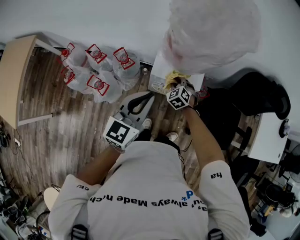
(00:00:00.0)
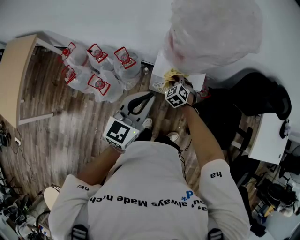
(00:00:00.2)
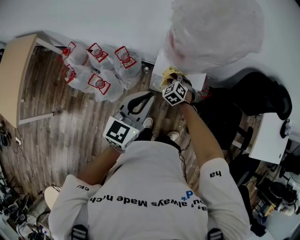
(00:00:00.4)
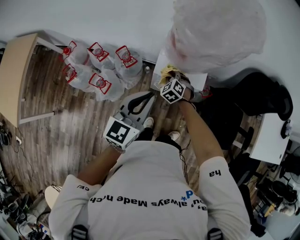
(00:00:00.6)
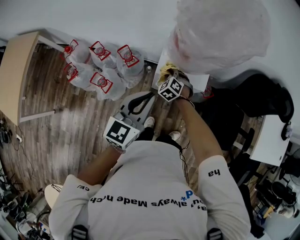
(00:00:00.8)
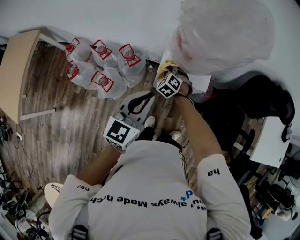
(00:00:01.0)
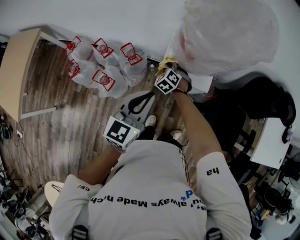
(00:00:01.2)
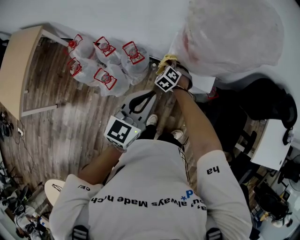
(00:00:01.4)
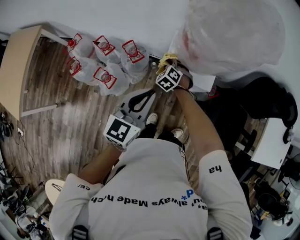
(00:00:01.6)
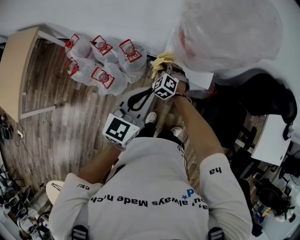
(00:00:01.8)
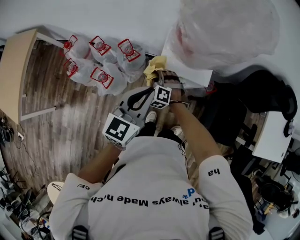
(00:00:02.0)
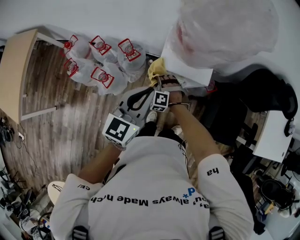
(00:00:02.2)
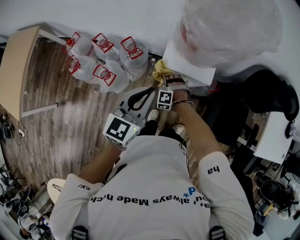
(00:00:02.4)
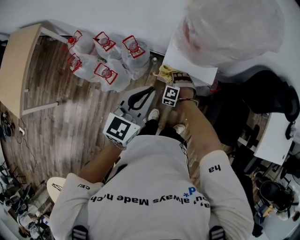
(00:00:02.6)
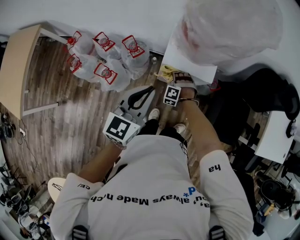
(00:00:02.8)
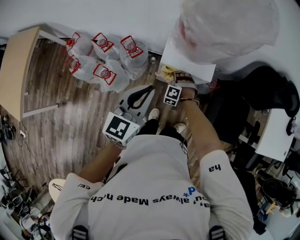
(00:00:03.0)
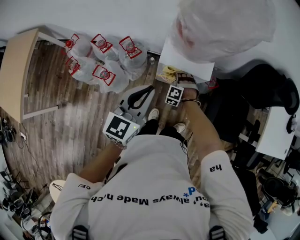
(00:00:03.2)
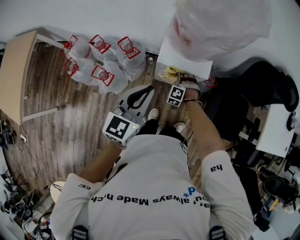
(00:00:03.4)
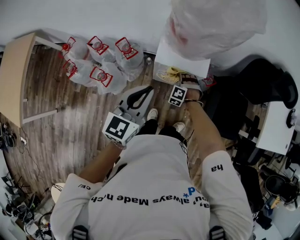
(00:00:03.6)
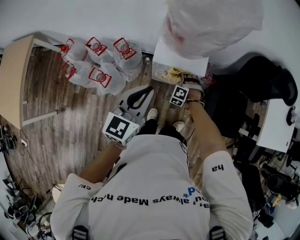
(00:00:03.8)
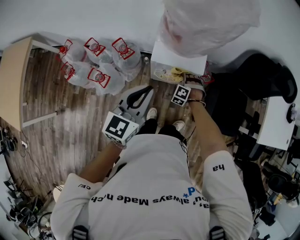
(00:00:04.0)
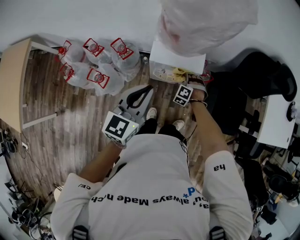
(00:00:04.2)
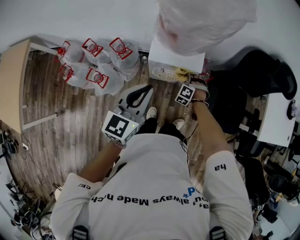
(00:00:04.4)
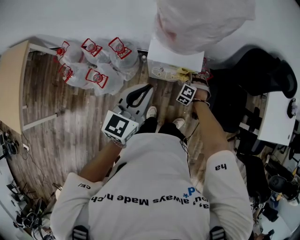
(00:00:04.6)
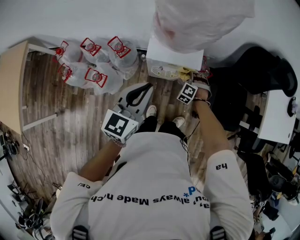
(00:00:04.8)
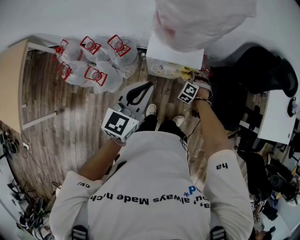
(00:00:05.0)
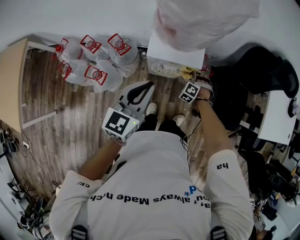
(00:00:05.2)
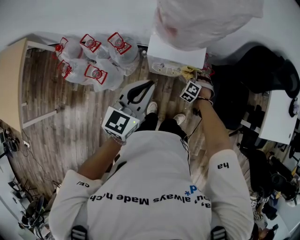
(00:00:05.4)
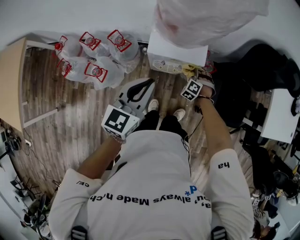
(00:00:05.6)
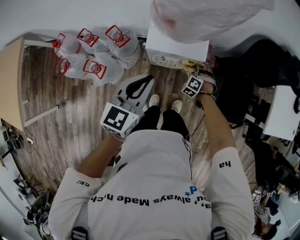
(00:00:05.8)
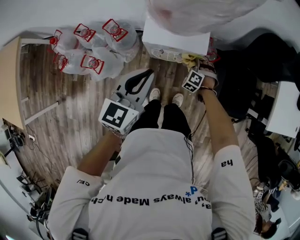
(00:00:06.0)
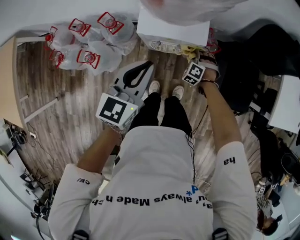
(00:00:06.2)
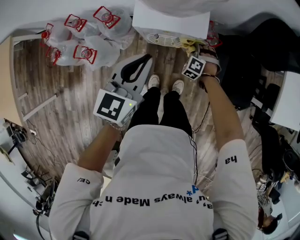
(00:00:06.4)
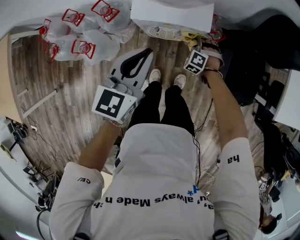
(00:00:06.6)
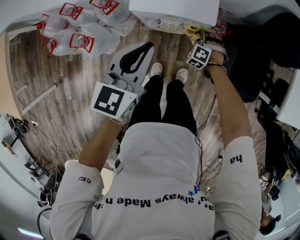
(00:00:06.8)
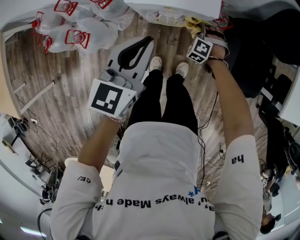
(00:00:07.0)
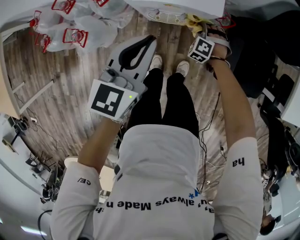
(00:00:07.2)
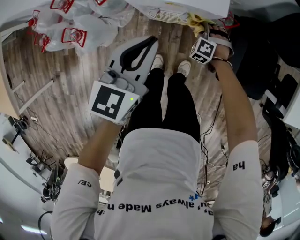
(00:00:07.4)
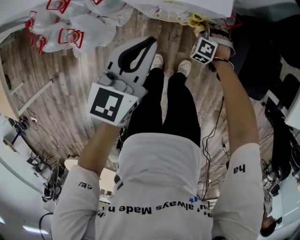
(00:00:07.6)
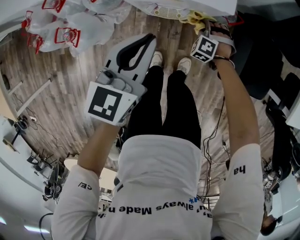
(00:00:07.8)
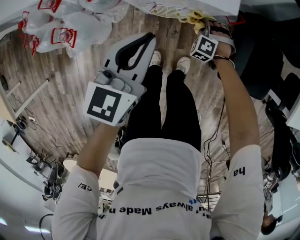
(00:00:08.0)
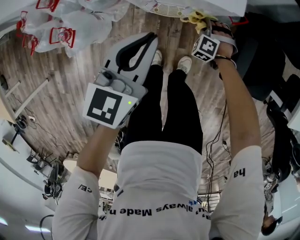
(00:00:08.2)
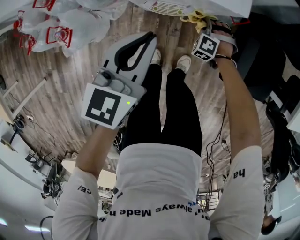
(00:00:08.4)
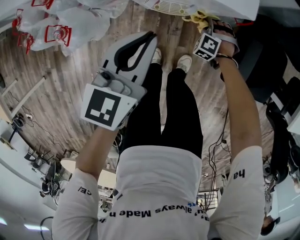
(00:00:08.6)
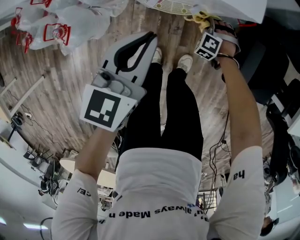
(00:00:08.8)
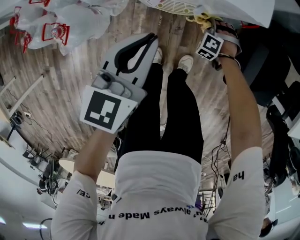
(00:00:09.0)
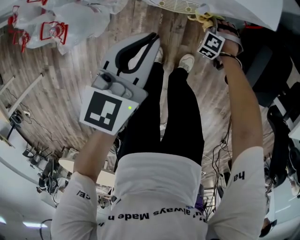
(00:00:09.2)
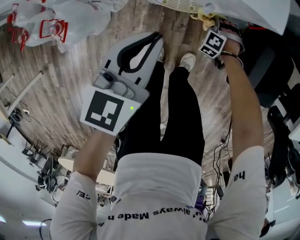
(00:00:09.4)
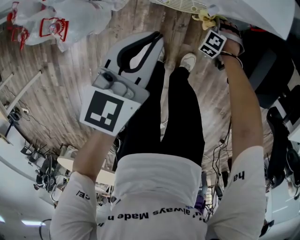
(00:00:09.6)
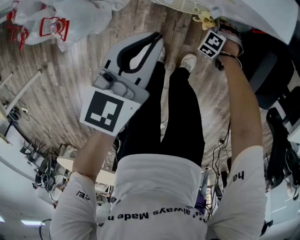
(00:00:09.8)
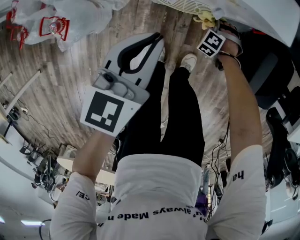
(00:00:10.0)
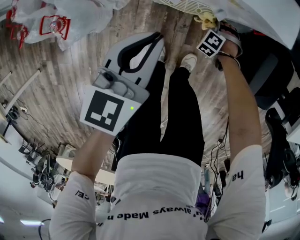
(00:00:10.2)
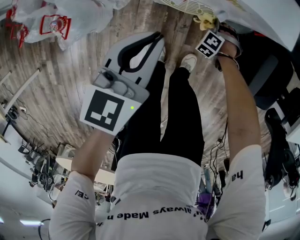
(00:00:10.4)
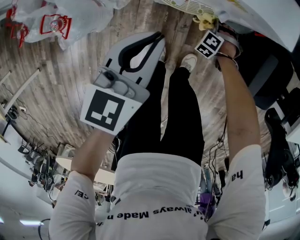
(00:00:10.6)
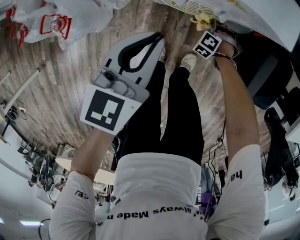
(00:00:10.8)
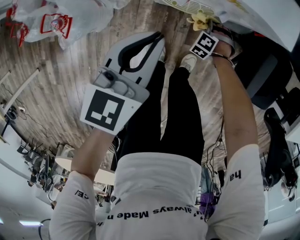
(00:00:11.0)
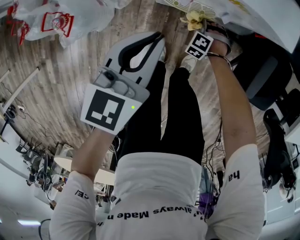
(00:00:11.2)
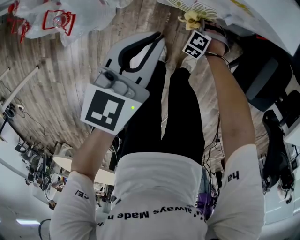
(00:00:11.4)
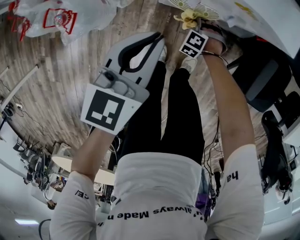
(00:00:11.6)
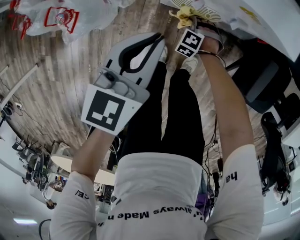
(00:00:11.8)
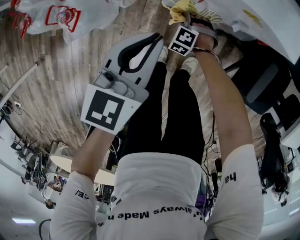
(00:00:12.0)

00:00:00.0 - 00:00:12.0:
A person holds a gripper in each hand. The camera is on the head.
00:00:00.0 - 00:00:01.6: The right gripper is displaced to the left by about 10 cm.
00:00:01.6 - 00:00:03.0: The right gripper heads backward, to the right and downward, covering some 15 cm, and rotates about 30 degrees.
00:00:03.0 - 00:00:04.4: The right gripper travels to the right by roughly 15 cm.
00:00:04.4 - 00:00:06.0: Both grippers move downward, some 5 cm.
00:00:06.0 - 00:00:07.6: Both grippers travel together downward, roughly 10 cm.
00:00:07.6 - 00:00:09.0: The two grippers go roughly 10 cm downward.
00:00:09.0 - 00:00:10.4: The right gripper travels downward by roughly 5 cm.
00:00:10.4 - 00:00:12.0: The right gripper is displaced to the left and backward by approximately 15 cm.

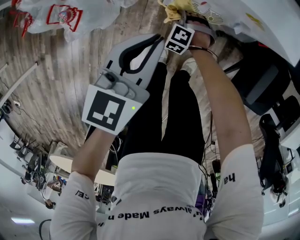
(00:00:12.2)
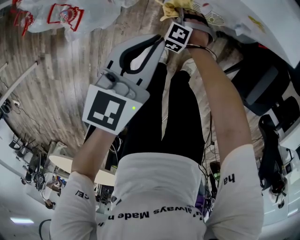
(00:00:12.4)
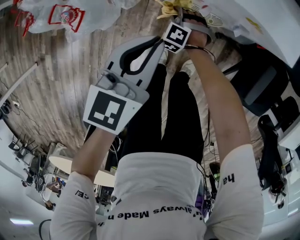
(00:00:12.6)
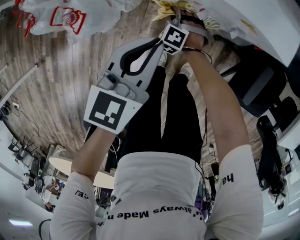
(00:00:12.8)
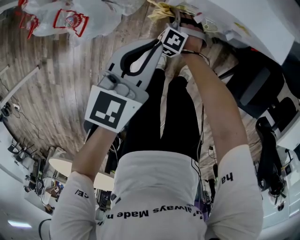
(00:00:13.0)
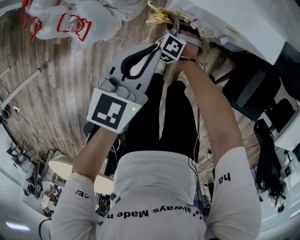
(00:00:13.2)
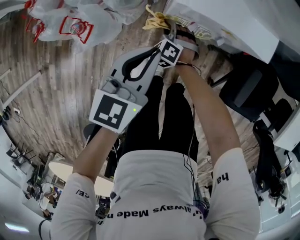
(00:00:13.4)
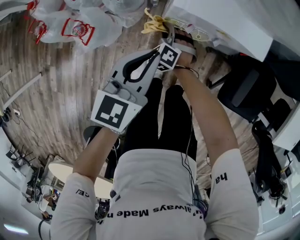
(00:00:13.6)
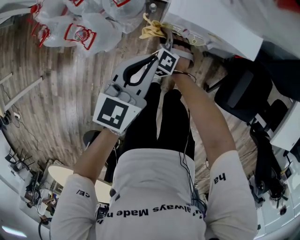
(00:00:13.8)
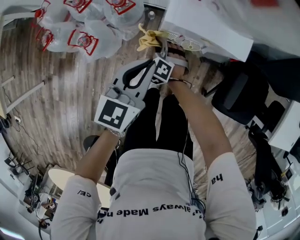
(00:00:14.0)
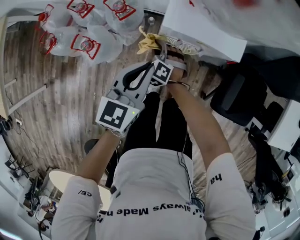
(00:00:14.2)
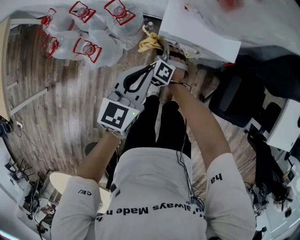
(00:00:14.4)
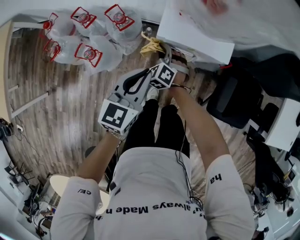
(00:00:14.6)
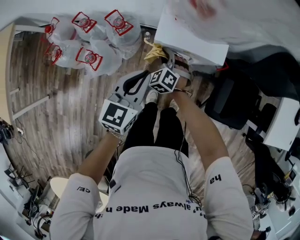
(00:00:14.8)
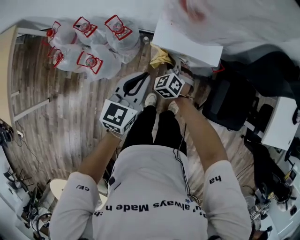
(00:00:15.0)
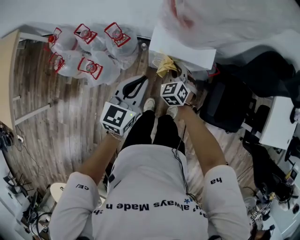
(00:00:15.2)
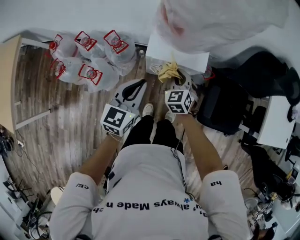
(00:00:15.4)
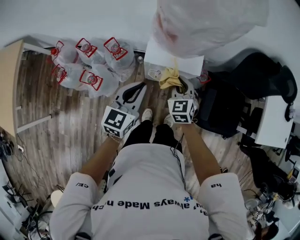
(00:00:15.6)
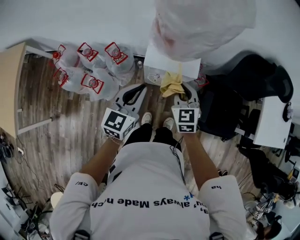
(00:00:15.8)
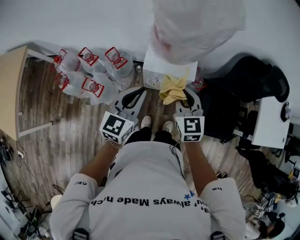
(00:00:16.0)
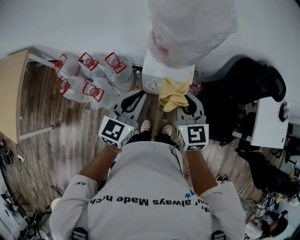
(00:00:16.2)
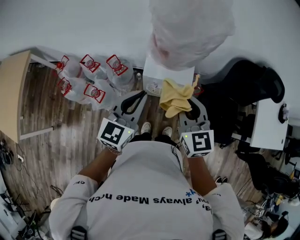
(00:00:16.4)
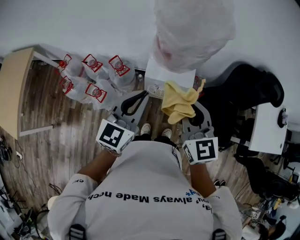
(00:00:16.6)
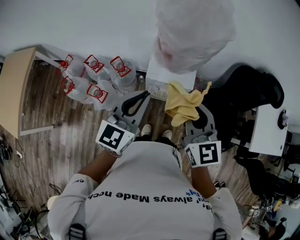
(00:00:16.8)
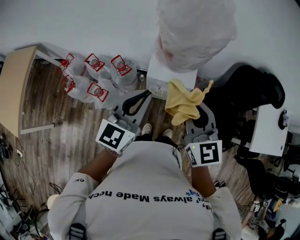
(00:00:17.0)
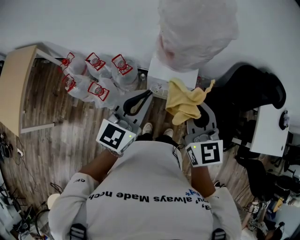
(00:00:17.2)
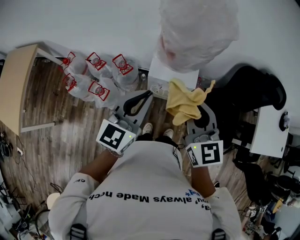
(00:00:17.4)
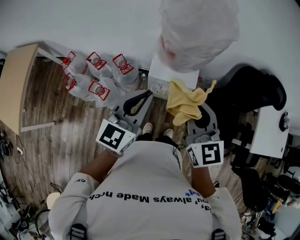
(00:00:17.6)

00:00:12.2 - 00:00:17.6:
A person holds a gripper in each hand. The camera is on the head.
00:00:12.2 - 00:00:13.6: The right gripper travels upward and to the left by some 15 cm, and changes its angle by some 20 degrees. The left gripper goes approximately 5 cm upward.
00:00:13.6 - 00:00:15.0: The left gripper is displaced upward by about 10 cm; the right gripper heads upward and to the right, covering roughly 20 cm.
00:00:15.0 - 00:00:16.2: The left gripper goes about 15 cm upward, while the right gripper moves upward, approximately 35 cm, and changes its angle by some 40 degrees.
00:00:16.2 - 00:00:17.6: Both grippers move upward, some 10 cm.

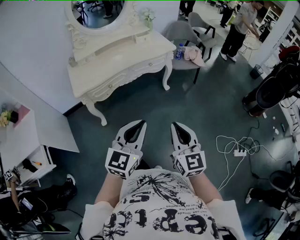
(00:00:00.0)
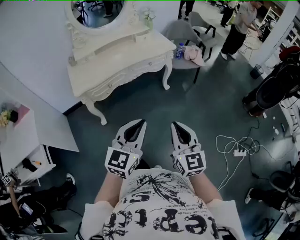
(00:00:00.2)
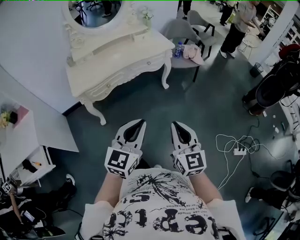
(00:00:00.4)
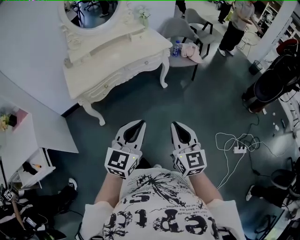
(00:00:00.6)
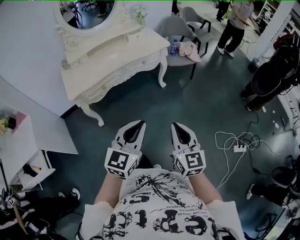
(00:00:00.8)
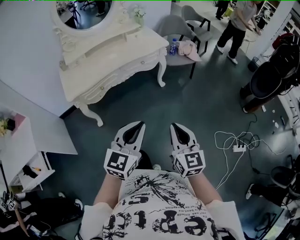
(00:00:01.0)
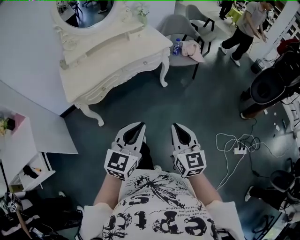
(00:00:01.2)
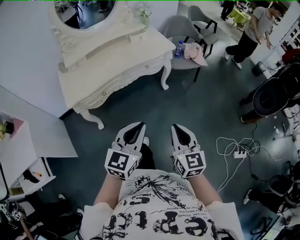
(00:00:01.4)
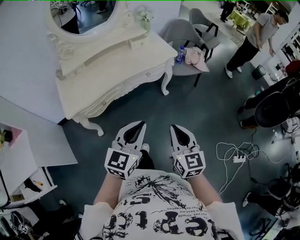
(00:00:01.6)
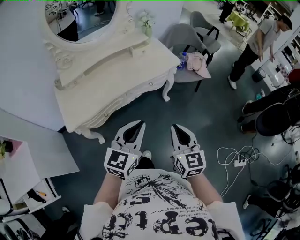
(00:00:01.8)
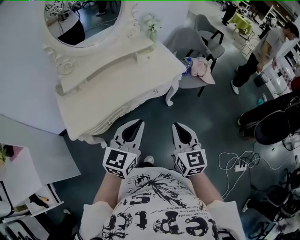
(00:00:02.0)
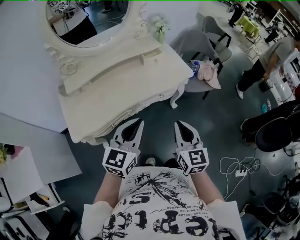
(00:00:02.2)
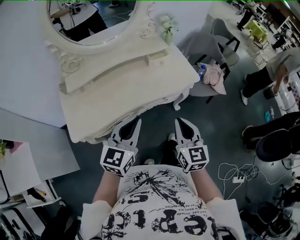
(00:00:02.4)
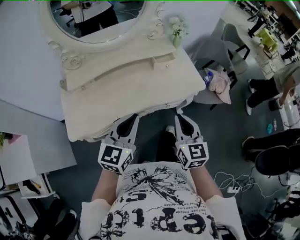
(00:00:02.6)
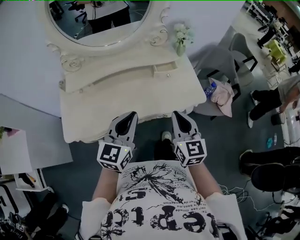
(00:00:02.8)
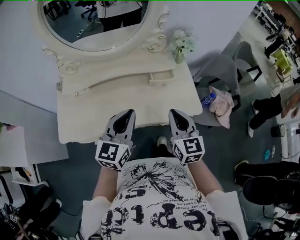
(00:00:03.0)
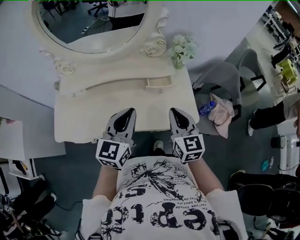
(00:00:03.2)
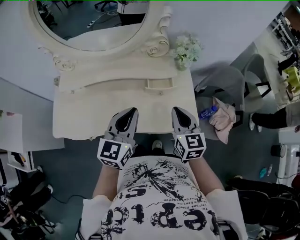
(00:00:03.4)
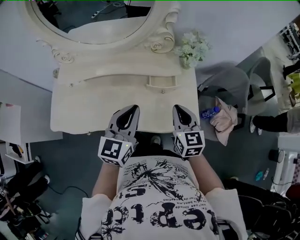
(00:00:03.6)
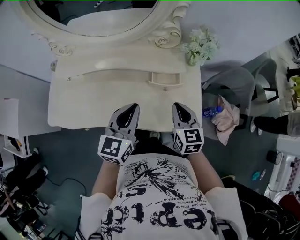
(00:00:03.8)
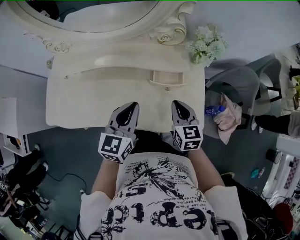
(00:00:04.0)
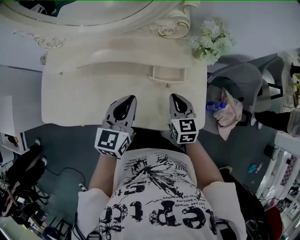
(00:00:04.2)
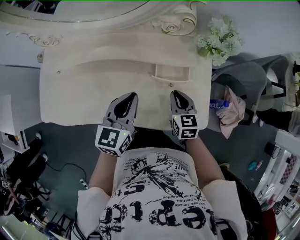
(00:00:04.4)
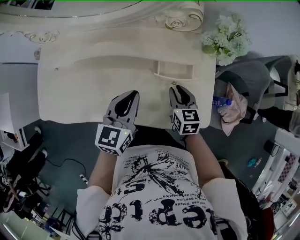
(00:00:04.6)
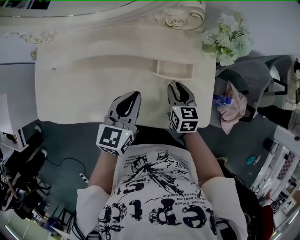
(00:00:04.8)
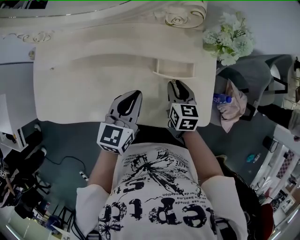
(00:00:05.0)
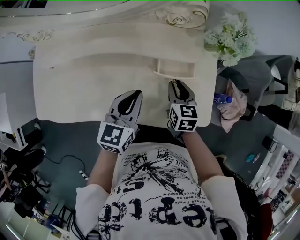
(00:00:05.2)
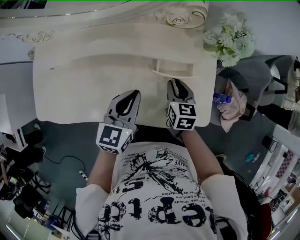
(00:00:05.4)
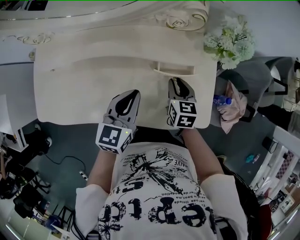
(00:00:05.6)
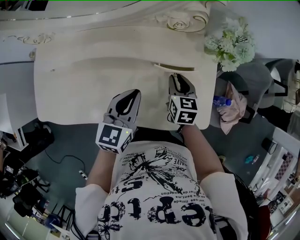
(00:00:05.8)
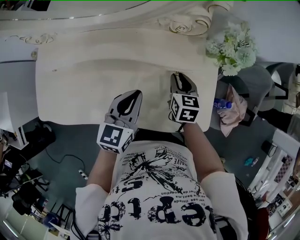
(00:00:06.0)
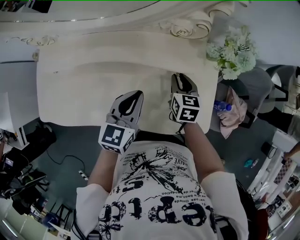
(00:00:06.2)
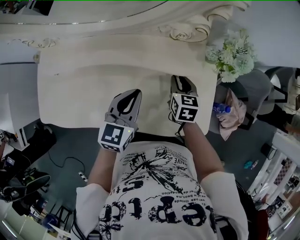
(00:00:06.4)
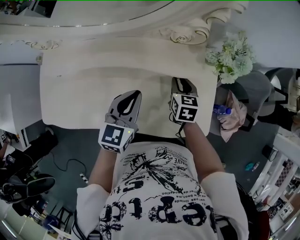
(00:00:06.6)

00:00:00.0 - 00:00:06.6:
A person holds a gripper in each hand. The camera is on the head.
00:00:00.0 - 00:00:01.6: Both grippers travel together forward, roughly 20 cm.
00:00:01.6 - 00:00:03.2: The pair of grippers is taken approximately 50 cm. The right gripper turns by about 30 degrees. The left gripper turns by some 30 degrees.
00:00:03.2 - 00:00:05.0: Both grippers travel together downward and forward, about 25 cm. The right gripper turns by roughly 30 degrees, and opens up.
00:00:05.0 - 00:00:06.6: The left gripper changes place by some 5 cm. Meanwhile the right gripper shifts some 10 cm forward.
